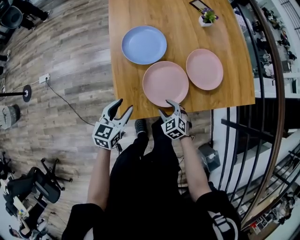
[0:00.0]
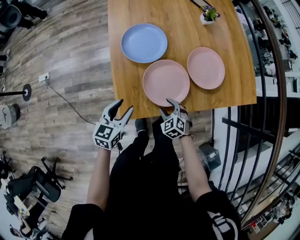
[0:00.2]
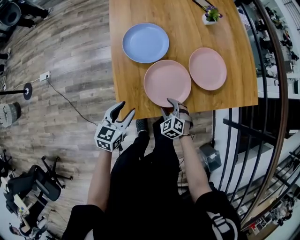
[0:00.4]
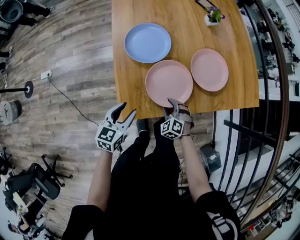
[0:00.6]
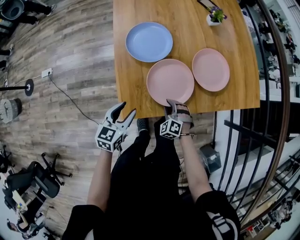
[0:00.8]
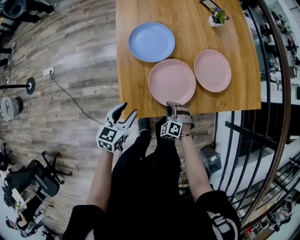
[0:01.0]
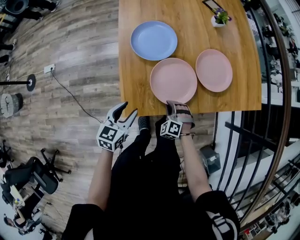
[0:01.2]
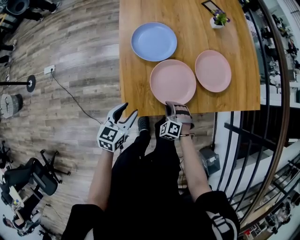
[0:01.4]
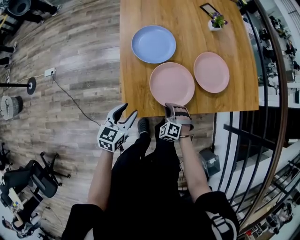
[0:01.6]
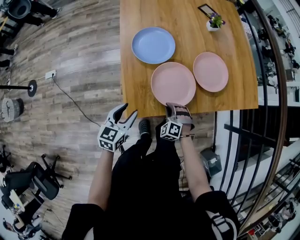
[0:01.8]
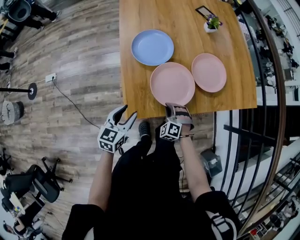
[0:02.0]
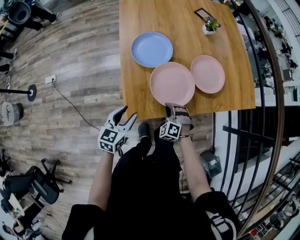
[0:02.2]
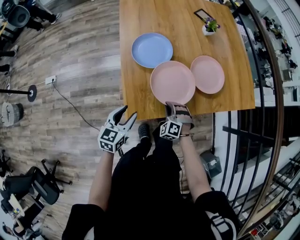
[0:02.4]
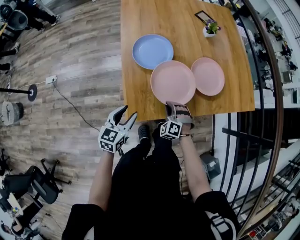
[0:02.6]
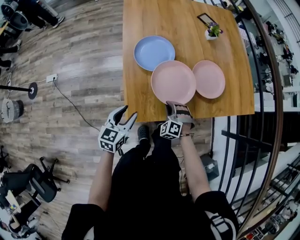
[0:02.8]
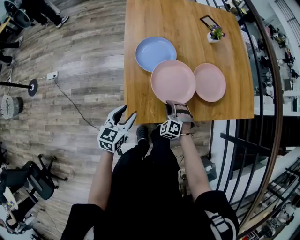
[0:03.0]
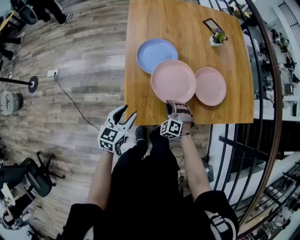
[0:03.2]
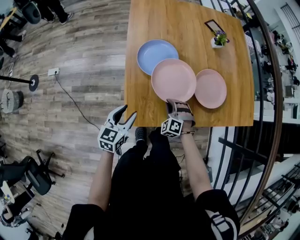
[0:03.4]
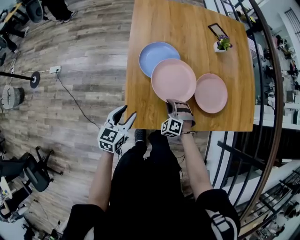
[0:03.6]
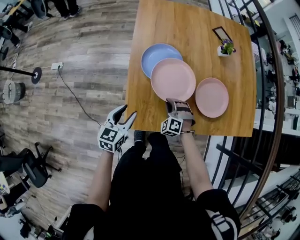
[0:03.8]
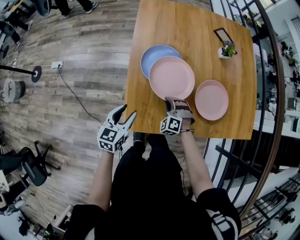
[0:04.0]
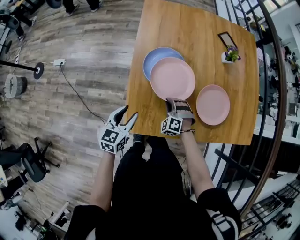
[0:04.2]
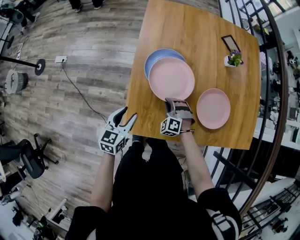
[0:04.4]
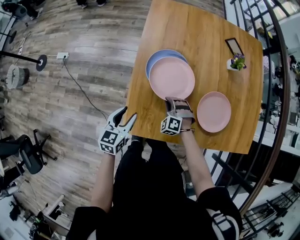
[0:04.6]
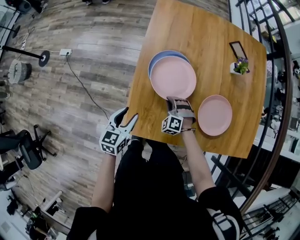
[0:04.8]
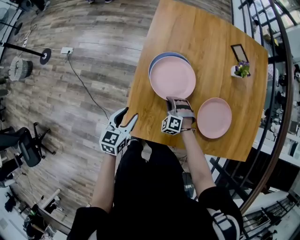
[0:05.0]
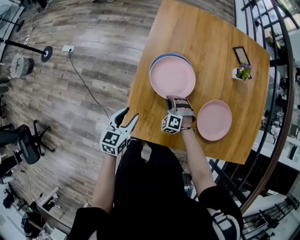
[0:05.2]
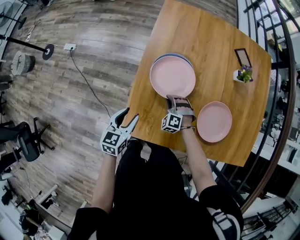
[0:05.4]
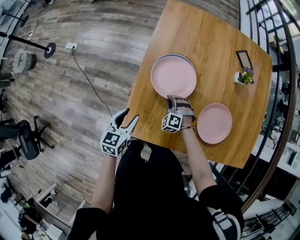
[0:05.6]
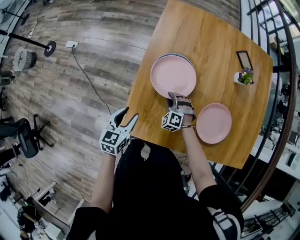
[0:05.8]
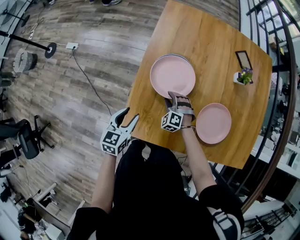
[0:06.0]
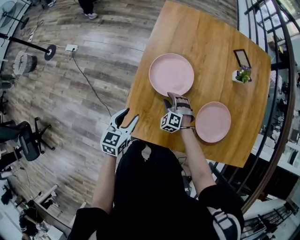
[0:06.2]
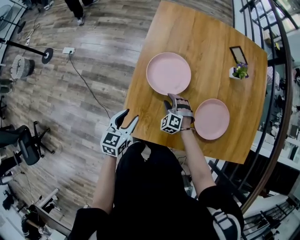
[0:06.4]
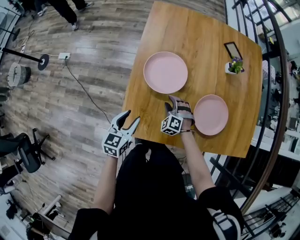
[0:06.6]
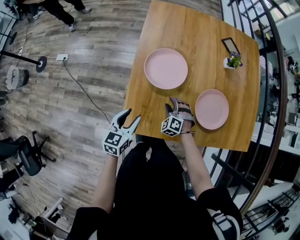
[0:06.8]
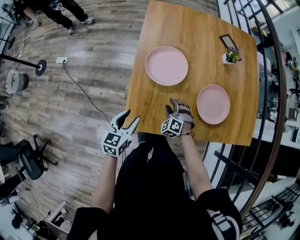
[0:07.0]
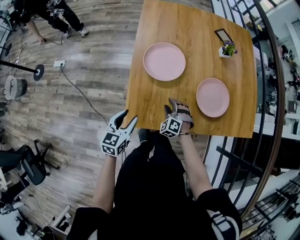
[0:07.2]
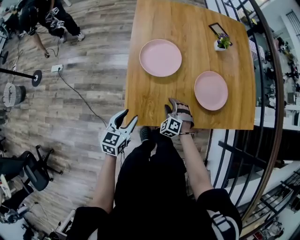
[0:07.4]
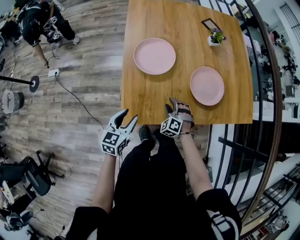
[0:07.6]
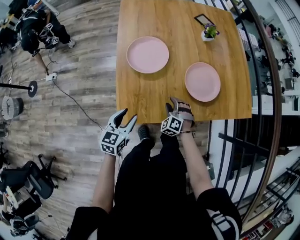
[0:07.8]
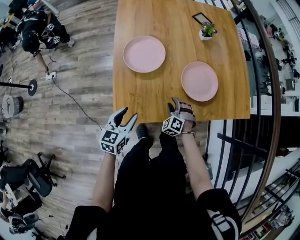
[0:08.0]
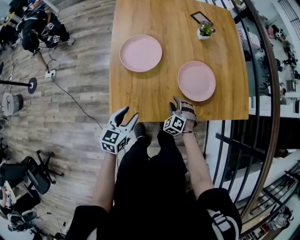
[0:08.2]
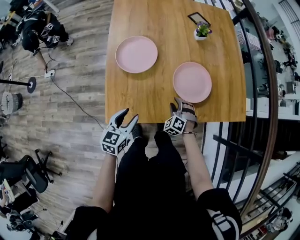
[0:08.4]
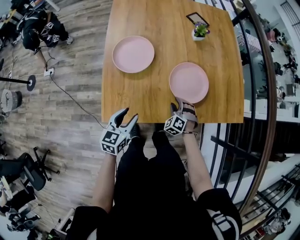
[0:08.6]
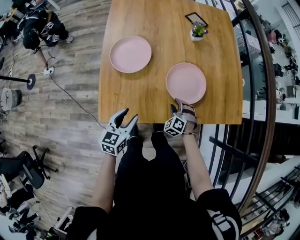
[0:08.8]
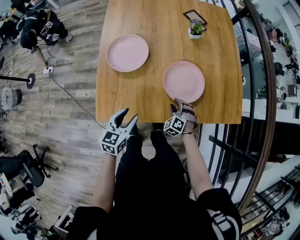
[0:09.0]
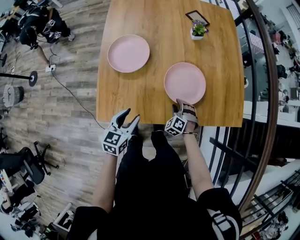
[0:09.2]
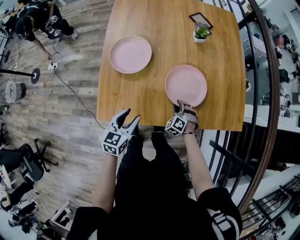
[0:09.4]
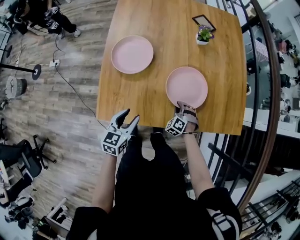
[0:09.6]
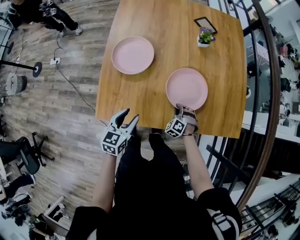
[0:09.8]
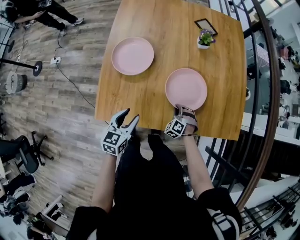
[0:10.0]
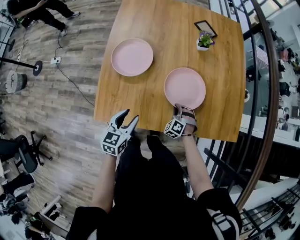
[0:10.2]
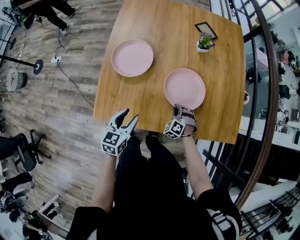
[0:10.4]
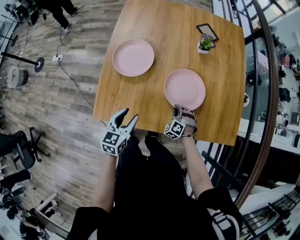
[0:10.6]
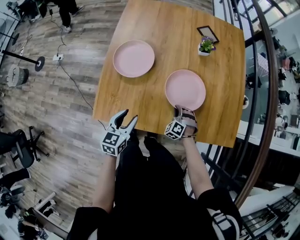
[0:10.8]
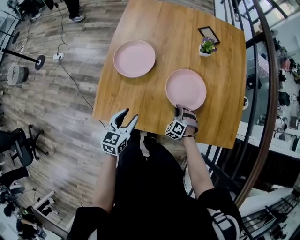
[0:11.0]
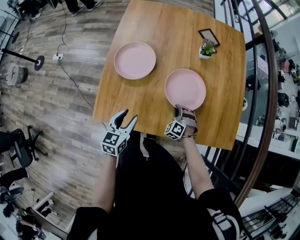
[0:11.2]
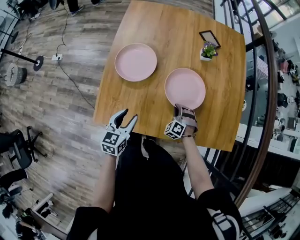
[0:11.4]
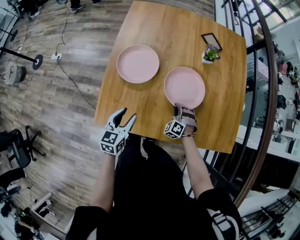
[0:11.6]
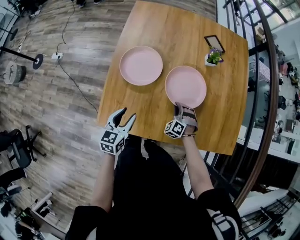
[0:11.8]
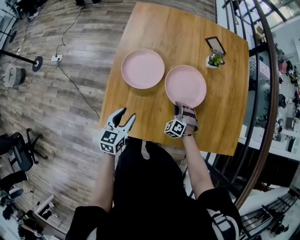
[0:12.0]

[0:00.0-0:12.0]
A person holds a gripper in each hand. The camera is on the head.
0.0 to 1.6 s: The right gripper rotates approximately 30 degrees, and closes up.
1.6 to 3.0 s: The right gripper travels forward and upward by approximately 5 cm.
3.0 to 4.4 s: The right gripper is displaced forward by about 10 cm; the left gripper heads forward, covering some 5 cm.
4.4 to 6.0 s: The right gripper goes roughly 5 cm forward, and opens up.
6.0 to 7.6 s: The right gripper goes approximately 15 cm backward and to the right, and rotates about 20 degrees. The left gripper is displaced backward by about 10 cm.
7.6 to 9.0 s: The two grippers go some 15 cm to the right.
9.0 to 10.4 s: The right gripper shifts by approximately 5 cm, and closes up.
10.4 to 12.0 s: The right gripper moves to the left and forward, some 10 cm, while the left gripper travels to the left by approximately 10 cm.

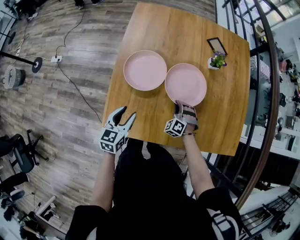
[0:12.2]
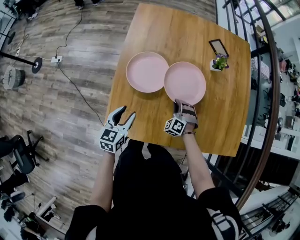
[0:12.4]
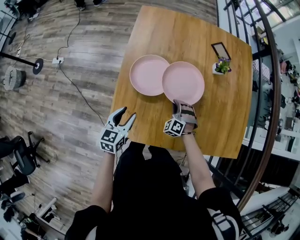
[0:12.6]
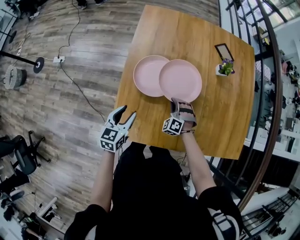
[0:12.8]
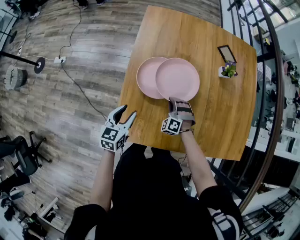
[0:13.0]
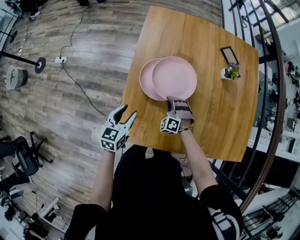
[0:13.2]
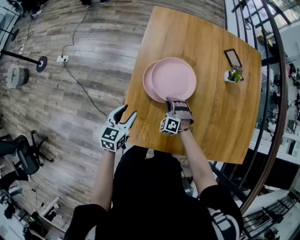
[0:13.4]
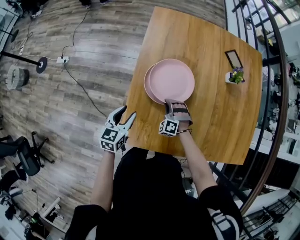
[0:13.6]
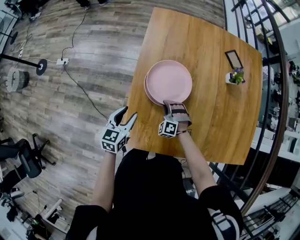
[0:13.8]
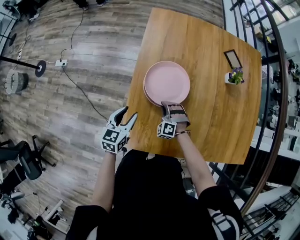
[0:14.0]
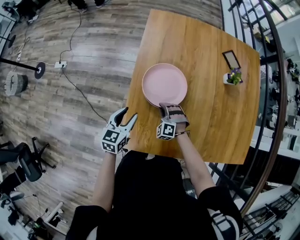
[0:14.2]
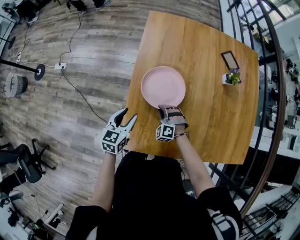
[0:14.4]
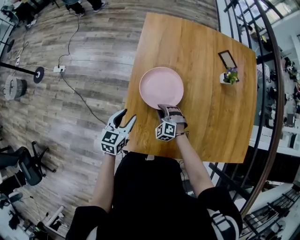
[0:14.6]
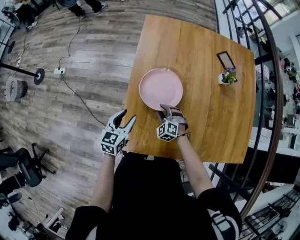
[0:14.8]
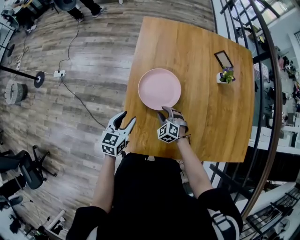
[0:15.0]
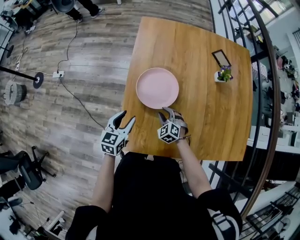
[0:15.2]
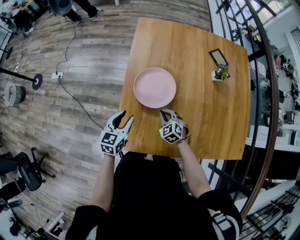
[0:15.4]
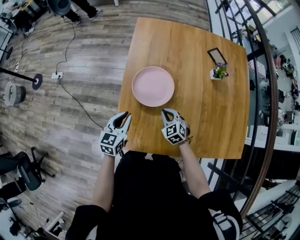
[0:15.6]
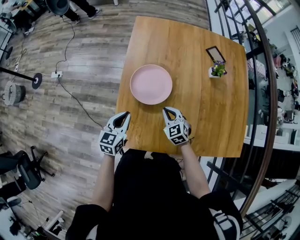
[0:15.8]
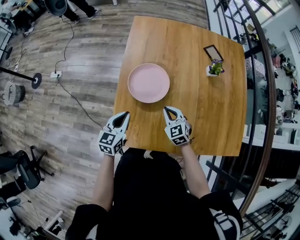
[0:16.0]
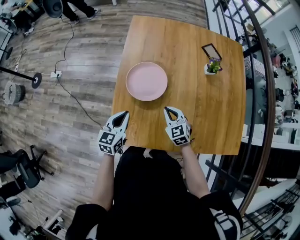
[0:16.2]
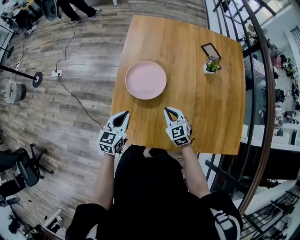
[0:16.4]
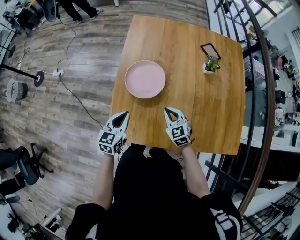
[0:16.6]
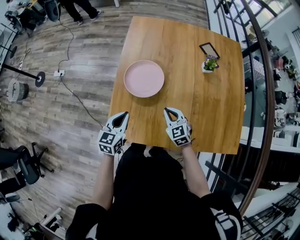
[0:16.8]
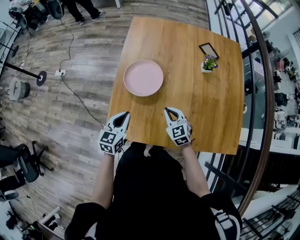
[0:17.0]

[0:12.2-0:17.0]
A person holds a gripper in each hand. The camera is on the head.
12.2 to 13.8 s: The left gripper is displaced to the left by approximately 15 cm. Meanwhile the right gripper heads to the left, covering about 20 cm.
13.8 to 15.4 s: The right gripper shifts by some 5 cm, changes its angle by some 40 degrees, and opens, then closes again.
15.4 to 17.0 s: The right gripper heads upward, to the right and backward, covering about 15 cm. Meanwhile the left gripper shifts roughly 10 cm to the right and backward, and closes.

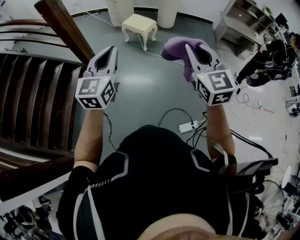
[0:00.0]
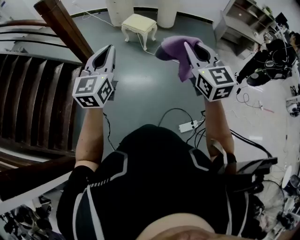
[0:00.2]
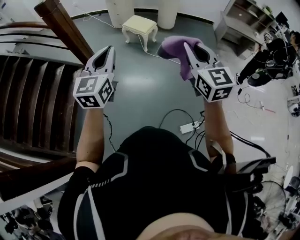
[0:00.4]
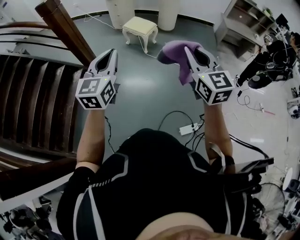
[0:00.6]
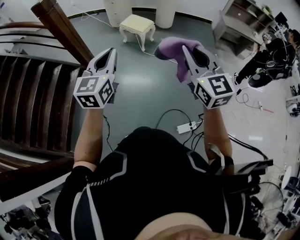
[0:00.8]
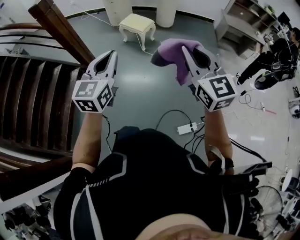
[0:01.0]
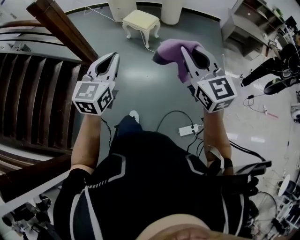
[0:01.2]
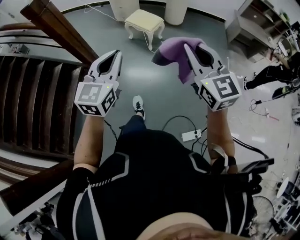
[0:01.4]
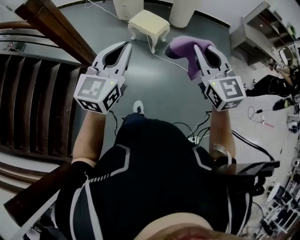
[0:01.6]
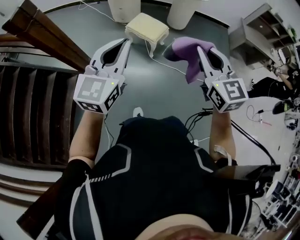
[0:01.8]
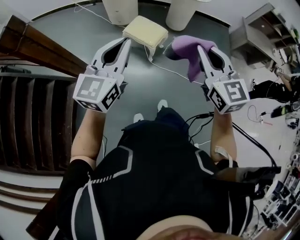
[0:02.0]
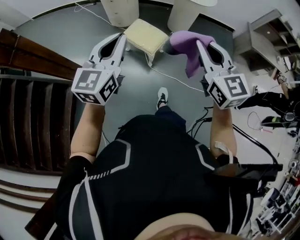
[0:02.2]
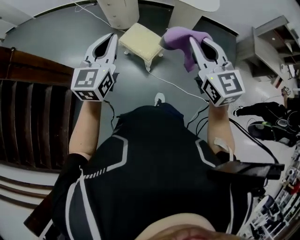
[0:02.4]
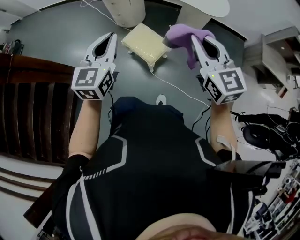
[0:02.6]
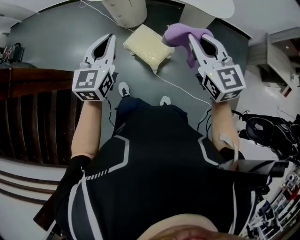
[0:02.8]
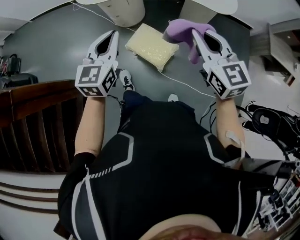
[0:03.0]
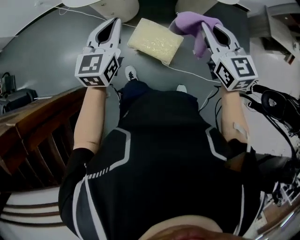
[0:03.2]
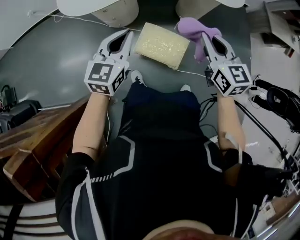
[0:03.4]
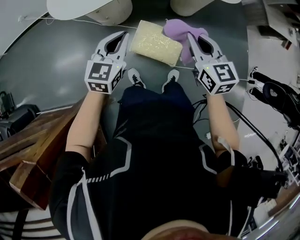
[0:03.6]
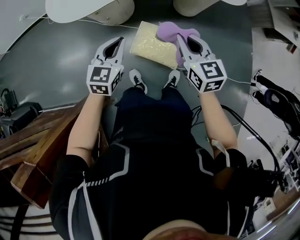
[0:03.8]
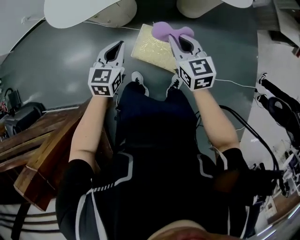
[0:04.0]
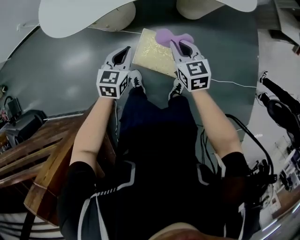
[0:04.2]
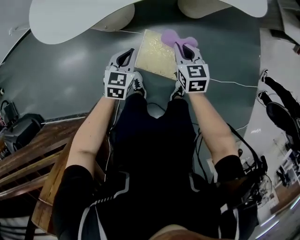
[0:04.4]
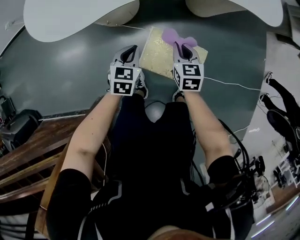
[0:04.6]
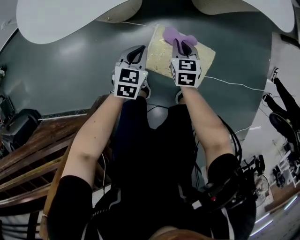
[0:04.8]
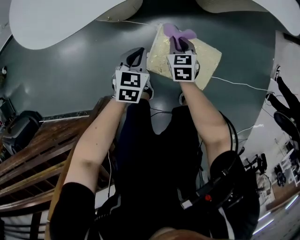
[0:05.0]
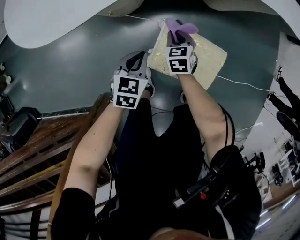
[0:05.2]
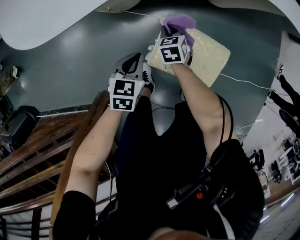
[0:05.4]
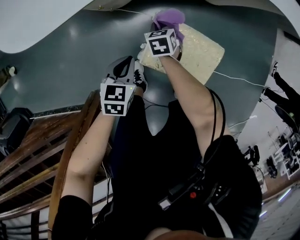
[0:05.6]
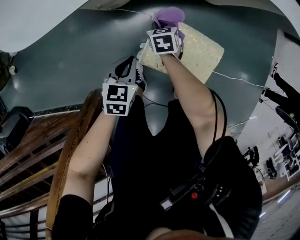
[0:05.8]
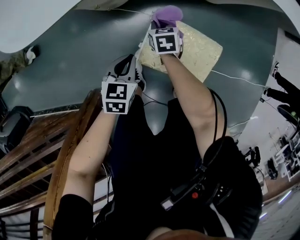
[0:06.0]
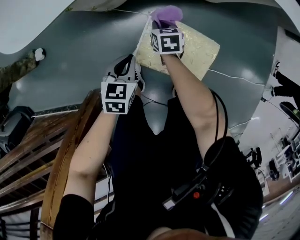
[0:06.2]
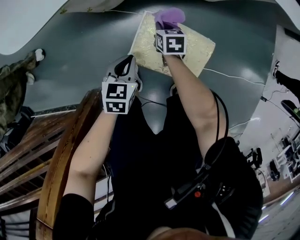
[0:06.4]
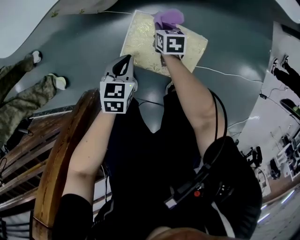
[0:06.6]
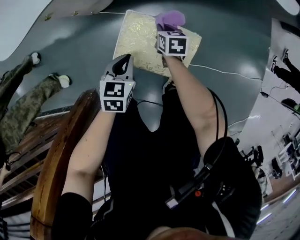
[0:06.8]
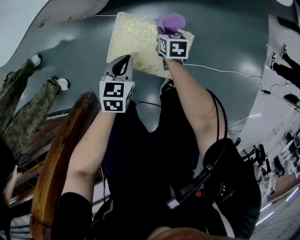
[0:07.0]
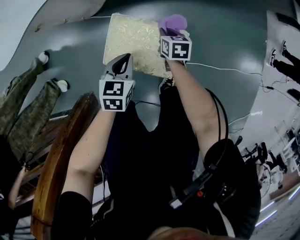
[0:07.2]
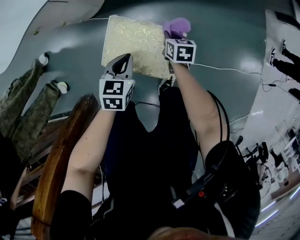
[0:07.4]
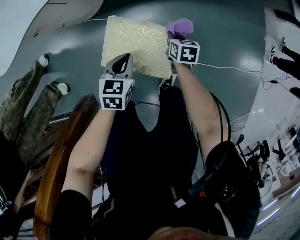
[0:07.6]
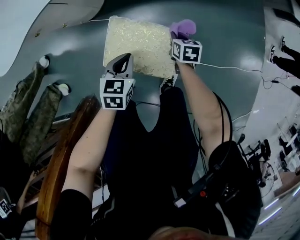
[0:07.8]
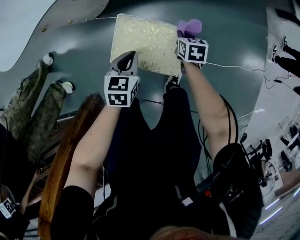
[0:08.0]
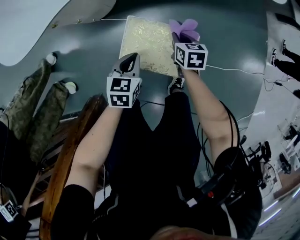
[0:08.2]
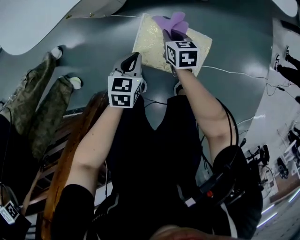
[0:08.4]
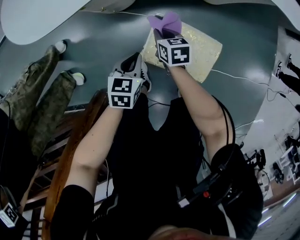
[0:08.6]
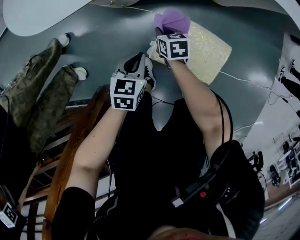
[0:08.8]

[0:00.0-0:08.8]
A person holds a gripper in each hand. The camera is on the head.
0.0 to 1.4 s: Both grippers travel together forward, approximately 15 cm.
1.4 to 3.0 s: Both grippers are carried forward, about 70 cm.
3.0 to 4.4 s: Both grippers travel together downward, approximately 35 cm. The left gripper rotates about 40 degrees. Meanwhile the right gripper turns by about 40 degrees.
4.4 to 5.8 s: The right gripper shifts approximately 30 cm downward and to the left, and swivels some 20 degrees, while the left gripper goes some 15 cm downward.
5.8 to 7.4 s: The two grippers go about 25 cm to the right. The right gripper changes its angle by roughly 20 degrees.
7.4 to 8.8 s: Both grippers travel together to the left, some 25 cm.
